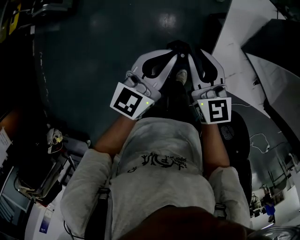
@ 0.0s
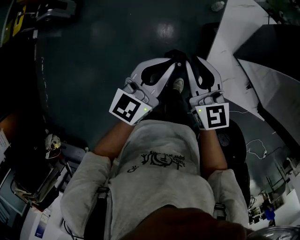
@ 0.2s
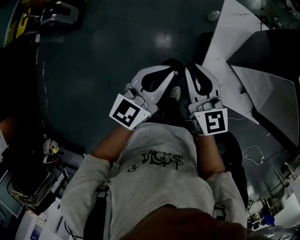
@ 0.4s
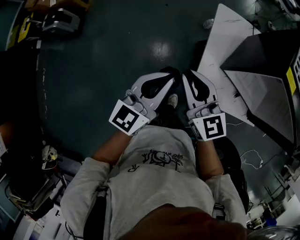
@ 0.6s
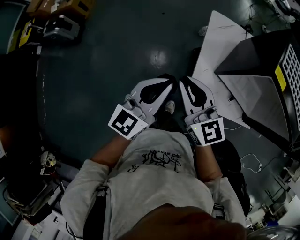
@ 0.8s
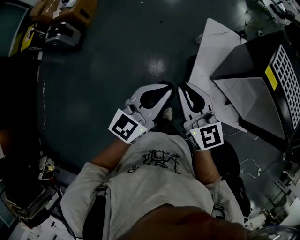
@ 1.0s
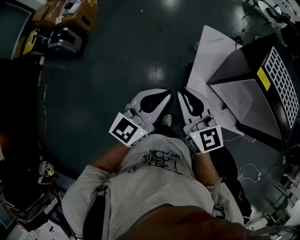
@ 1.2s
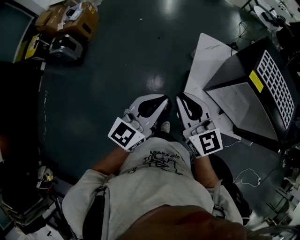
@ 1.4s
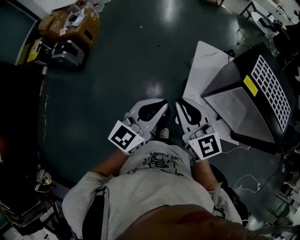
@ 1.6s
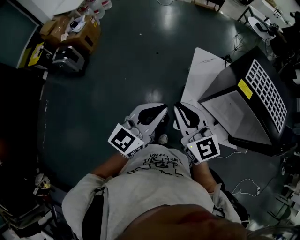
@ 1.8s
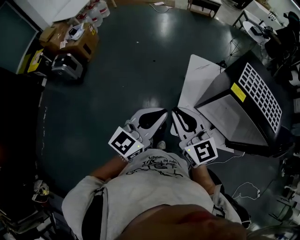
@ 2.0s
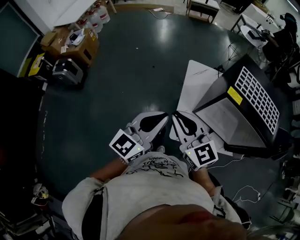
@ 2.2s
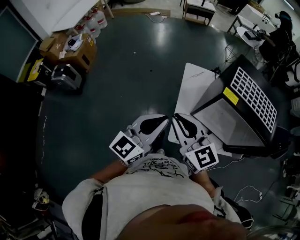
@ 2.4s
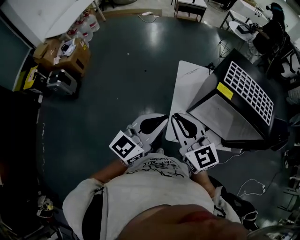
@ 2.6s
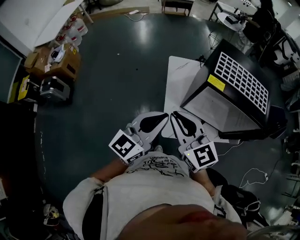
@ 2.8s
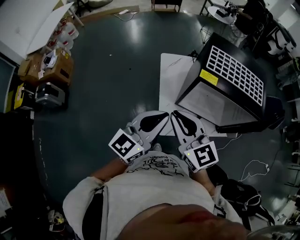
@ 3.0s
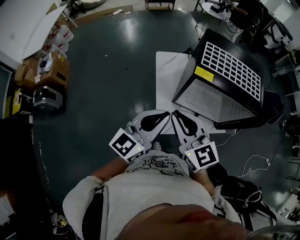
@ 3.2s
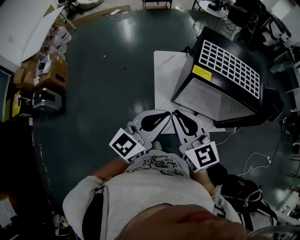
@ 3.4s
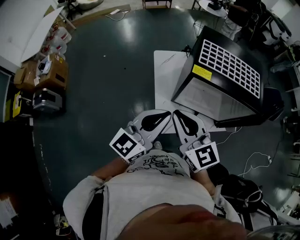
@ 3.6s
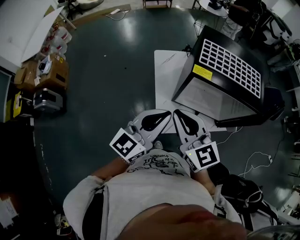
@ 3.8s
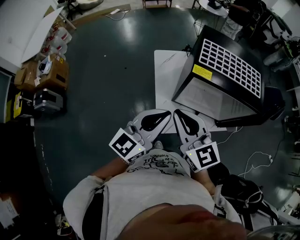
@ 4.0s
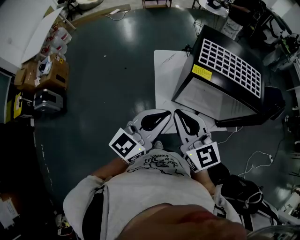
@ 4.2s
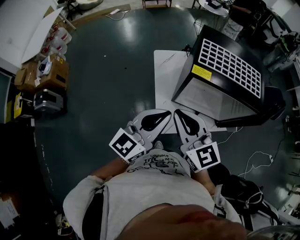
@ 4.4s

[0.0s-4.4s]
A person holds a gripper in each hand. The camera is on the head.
0.0s to 1.4s: The two grippers go roughly 20 cm upward.
1.4s to 3.0s: The grippers both shift to the right and upward by about 15 cm. The left gripper swivels roughly 20 degrees.
3.0s to 4.4s: The grippers stay close to where they were, moving slightly.

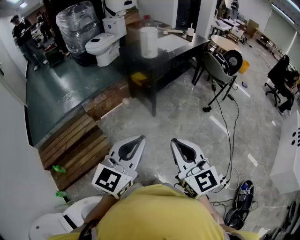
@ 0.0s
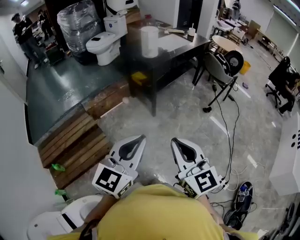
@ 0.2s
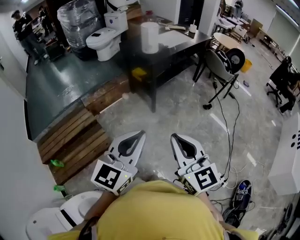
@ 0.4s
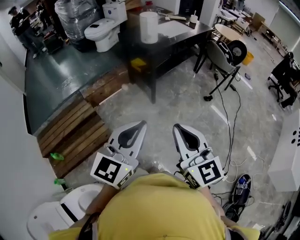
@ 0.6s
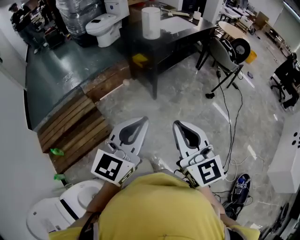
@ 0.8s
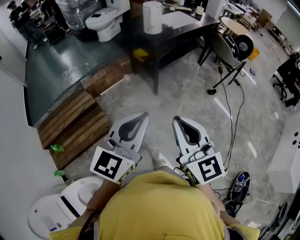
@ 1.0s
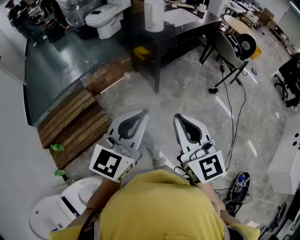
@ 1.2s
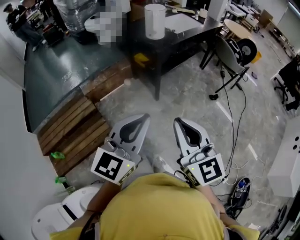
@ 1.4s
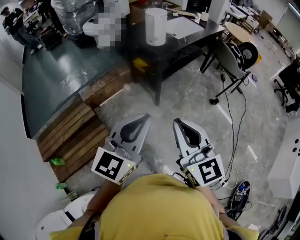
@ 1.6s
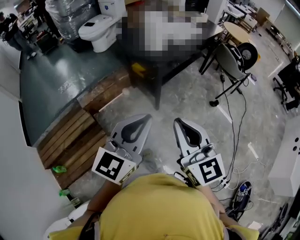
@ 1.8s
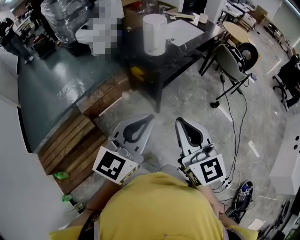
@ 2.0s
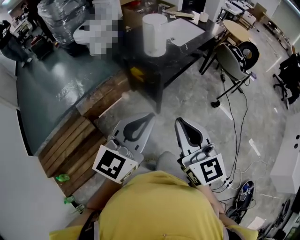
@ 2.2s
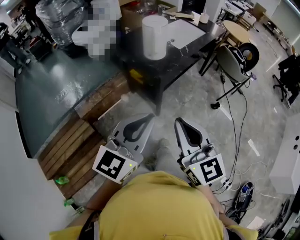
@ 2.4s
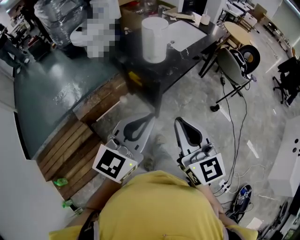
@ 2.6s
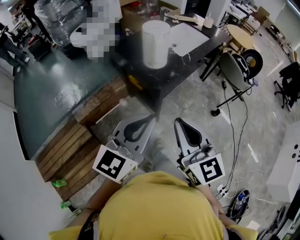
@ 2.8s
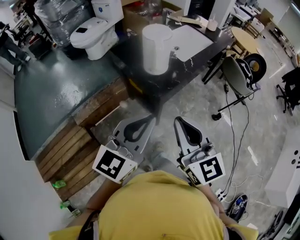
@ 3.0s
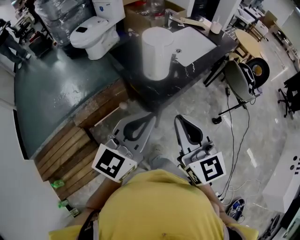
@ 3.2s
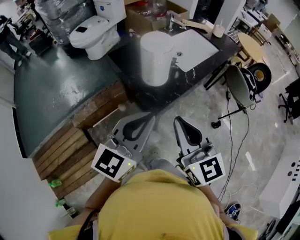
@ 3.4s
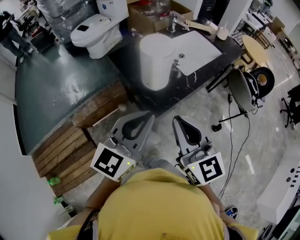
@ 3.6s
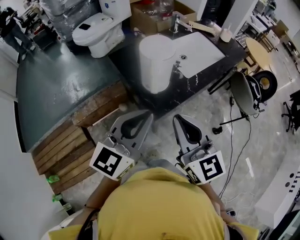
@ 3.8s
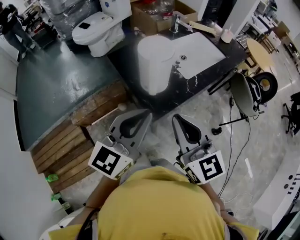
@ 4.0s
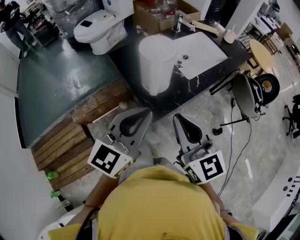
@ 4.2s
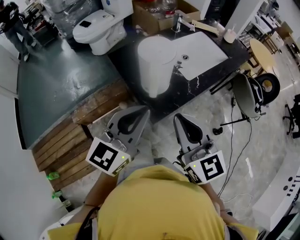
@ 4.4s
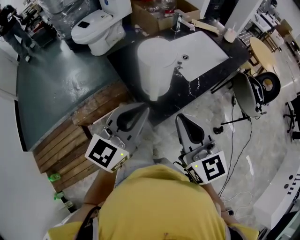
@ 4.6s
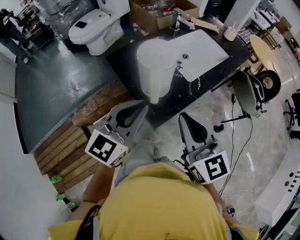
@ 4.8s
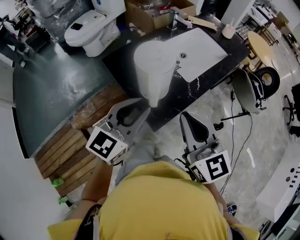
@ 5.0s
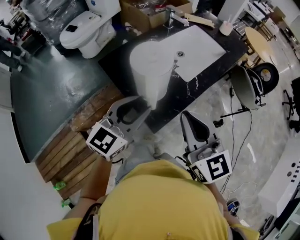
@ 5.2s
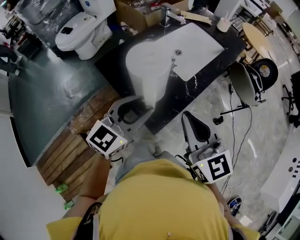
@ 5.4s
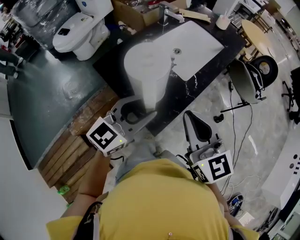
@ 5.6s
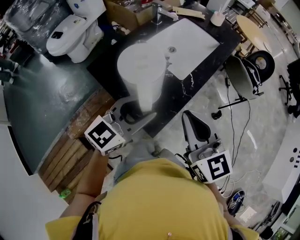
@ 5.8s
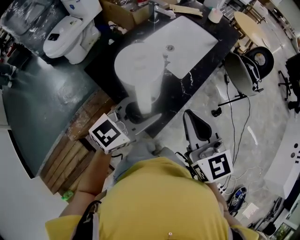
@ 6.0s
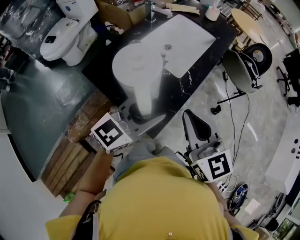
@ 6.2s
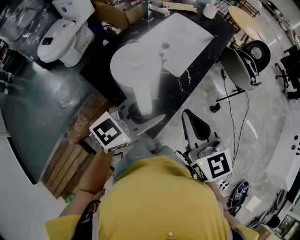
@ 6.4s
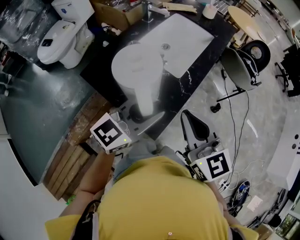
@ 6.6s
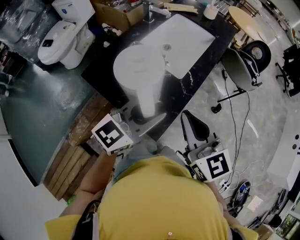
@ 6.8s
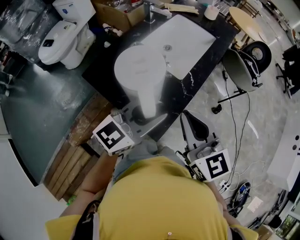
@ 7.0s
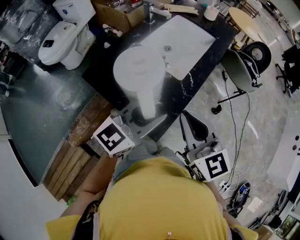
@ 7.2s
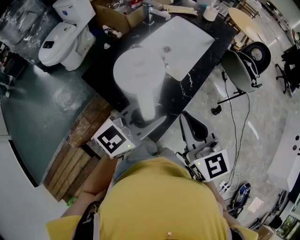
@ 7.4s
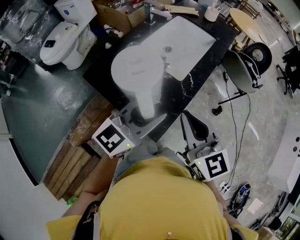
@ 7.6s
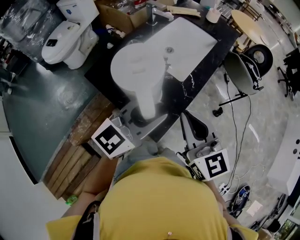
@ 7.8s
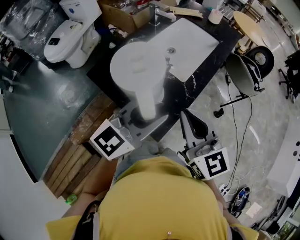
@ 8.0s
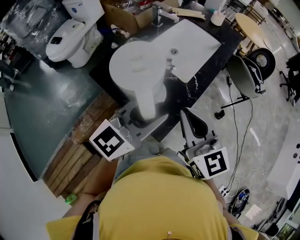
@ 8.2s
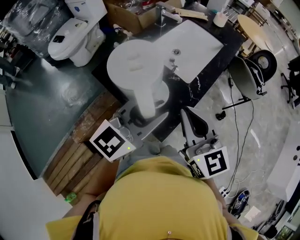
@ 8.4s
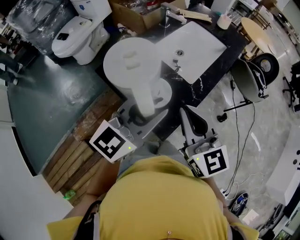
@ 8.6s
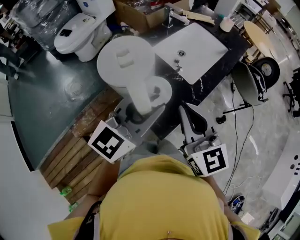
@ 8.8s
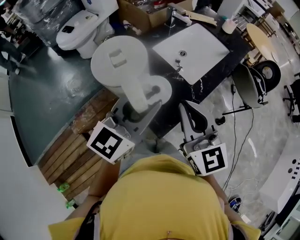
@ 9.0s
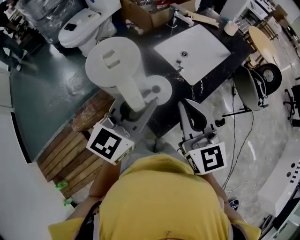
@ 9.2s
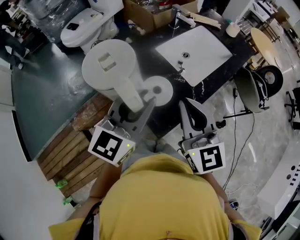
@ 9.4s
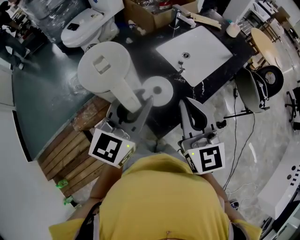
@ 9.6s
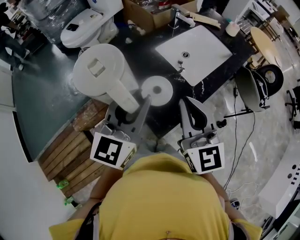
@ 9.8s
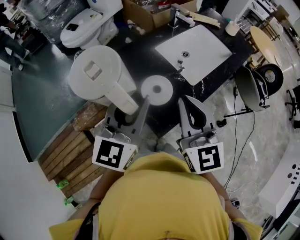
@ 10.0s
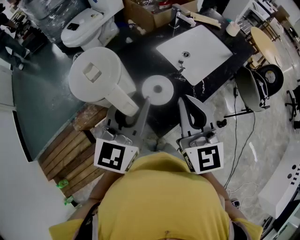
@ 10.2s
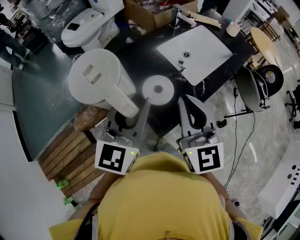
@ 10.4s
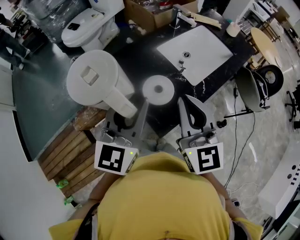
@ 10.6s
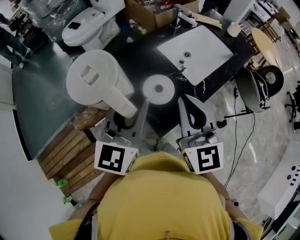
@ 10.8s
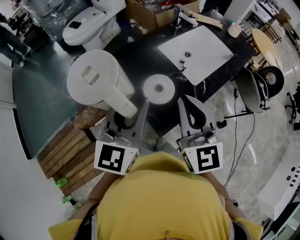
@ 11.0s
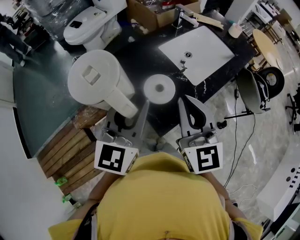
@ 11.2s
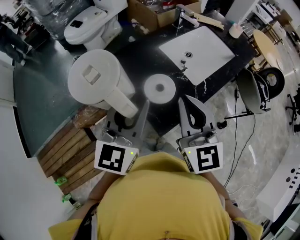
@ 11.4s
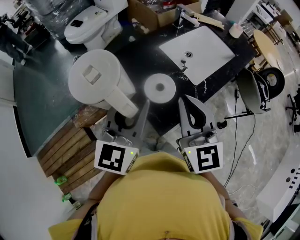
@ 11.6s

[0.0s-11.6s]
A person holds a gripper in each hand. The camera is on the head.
0.0s to 1.4s: The two grippers go roughly 10 cm forward.
1.4s to 2.8s: The grippers both shift forward by approximately 30 cm.
2.8s to 4.4s: Both grippers move forward, roughly 25 cm.
4.4s to 5.8s: The left gripper travels forward and downward by roughly 15 cm, swivels about 30 degrees, and opens. Meanwhile the right gripper is displaced forward by roughly 10 cm.
5.8s to 7.2s: The grippers move only a little.
7.2s to 8.8s: The left gripper heads upward, covering approximately 5 cm.
8.8s to 10.2s: The left gripper heads to the left, covering about 5 cm, and turns by about 30 degrees.
10.2s to 11.6s: The grippers make only small movements.

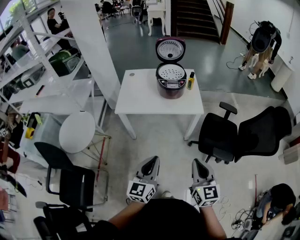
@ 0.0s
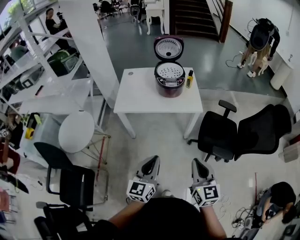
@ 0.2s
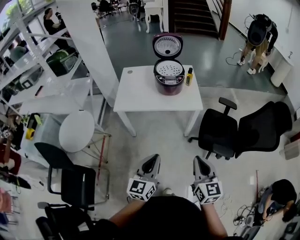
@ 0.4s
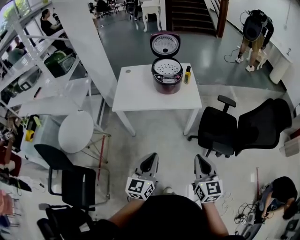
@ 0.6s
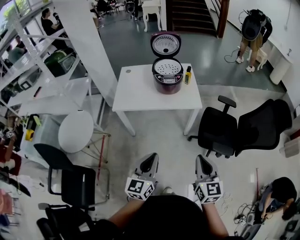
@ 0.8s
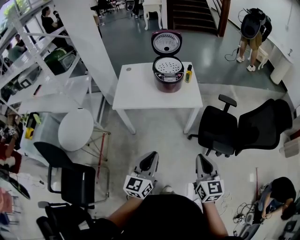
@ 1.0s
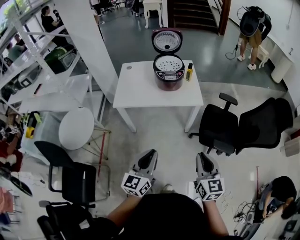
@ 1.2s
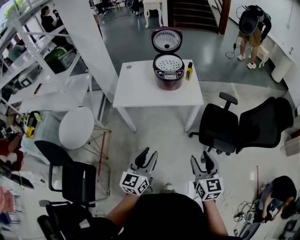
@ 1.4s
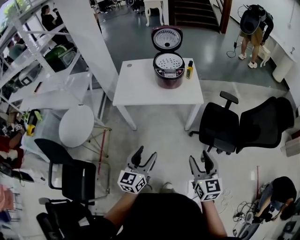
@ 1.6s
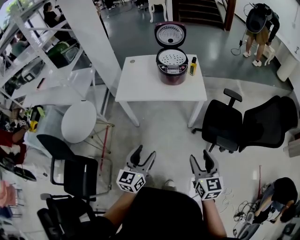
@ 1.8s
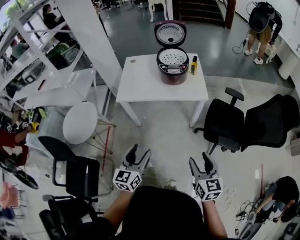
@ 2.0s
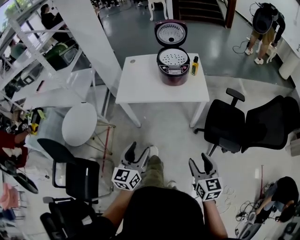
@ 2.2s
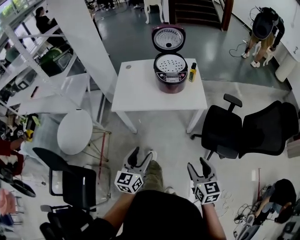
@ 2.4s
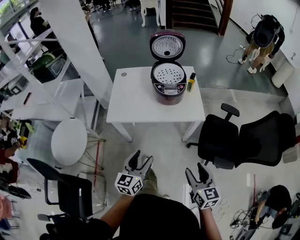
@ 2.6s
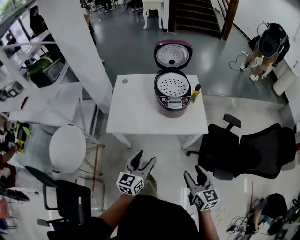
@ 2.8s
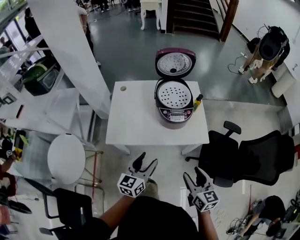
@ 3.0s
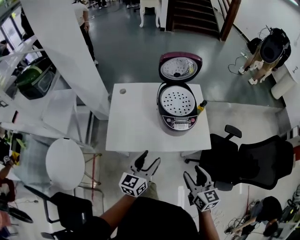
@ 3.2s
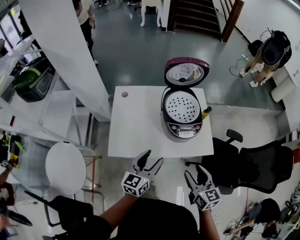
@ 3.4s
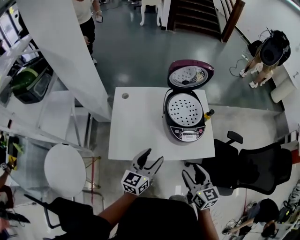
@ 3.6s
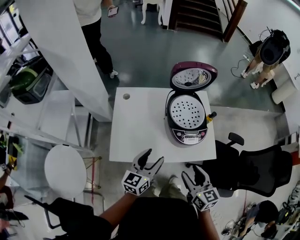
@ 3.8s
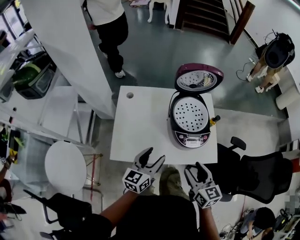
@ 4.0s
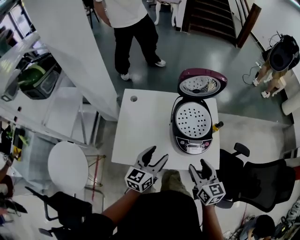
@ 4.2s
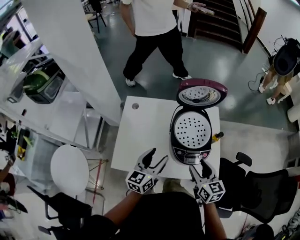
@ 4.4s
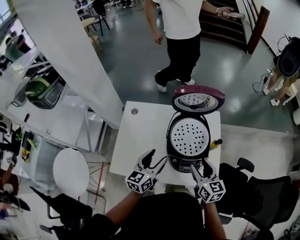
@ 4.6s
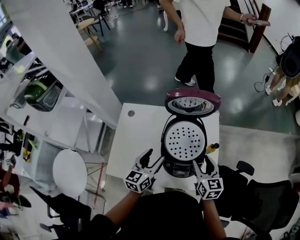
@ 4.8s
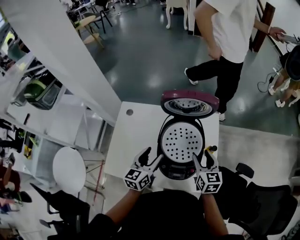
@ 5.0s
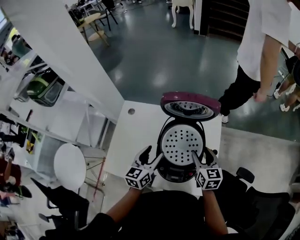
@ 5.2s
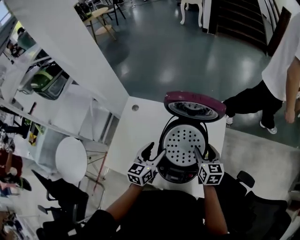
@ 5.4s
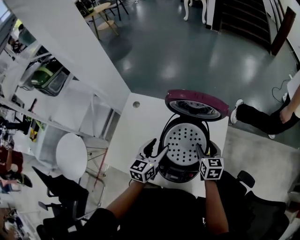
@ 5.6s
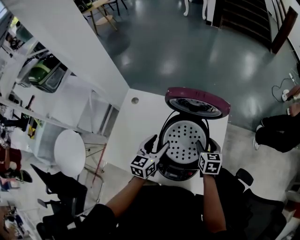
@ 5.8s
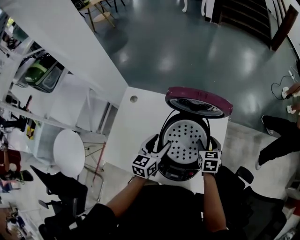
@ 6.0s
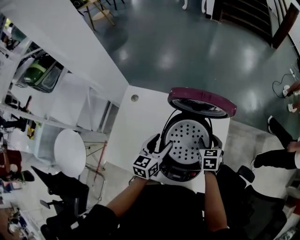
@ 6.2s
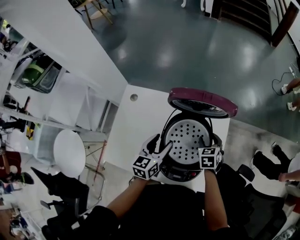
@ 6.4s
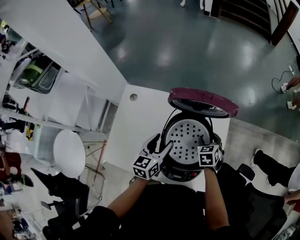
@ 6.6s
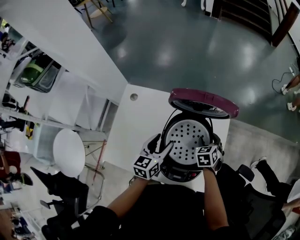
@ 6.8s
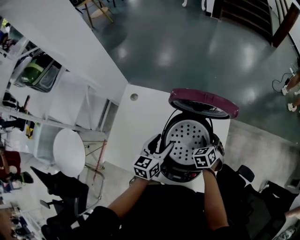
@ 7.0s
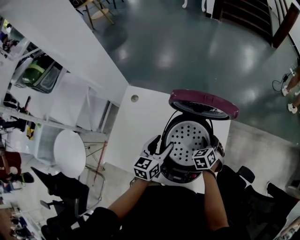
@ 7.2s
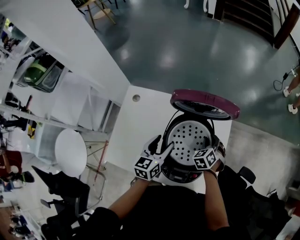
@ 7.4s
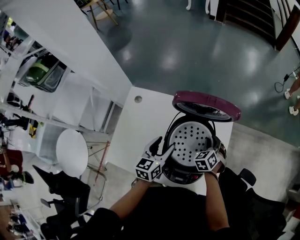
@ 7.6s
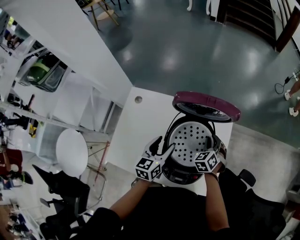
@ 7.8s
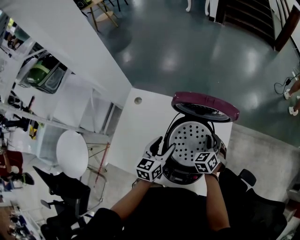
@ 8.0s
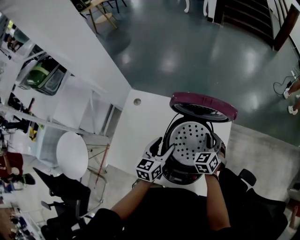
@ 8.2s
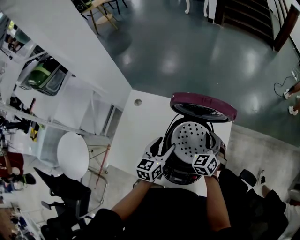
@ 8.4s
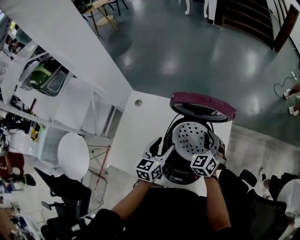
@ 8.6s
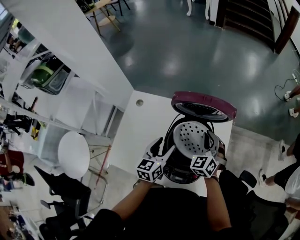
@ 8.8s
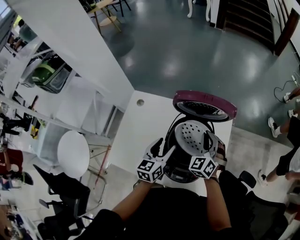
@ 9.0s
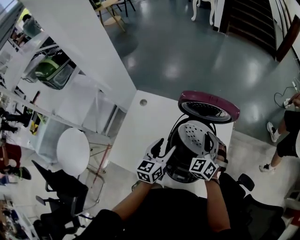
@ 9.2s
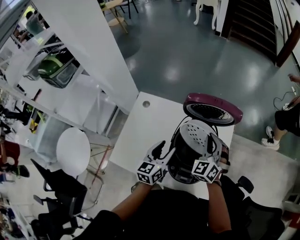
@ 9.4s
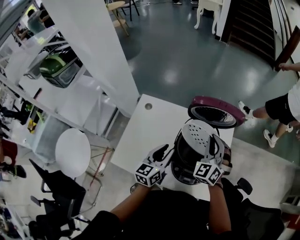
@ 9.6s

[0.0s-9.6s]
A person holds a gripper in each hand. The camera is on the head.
0.0s to 1.6s: The left gripper opens its fingers. Meanwhile the right gripper opens.
1.6s to 3.2s: Both grippers travel together forward, about 35 cm.
3.2s to 4.8s: Both grippers move forward, about 30 cm.
4.8s to 6.4s: The right gripper goes about 20 cm forward and downward, and swivels some 30 degrees. The left gripper shifts roughly 10 cm forward and downward.
6.4s to 8.0s: The right gripper swivels about 30 degrees, and closes its fingers.
8.0s to 9.6s: The right gripper shifts some 20 cm upward and to the left, and swivels about 30 degrees; the left gripper travels backward by approximately 5 cm, and closes its fingers.
